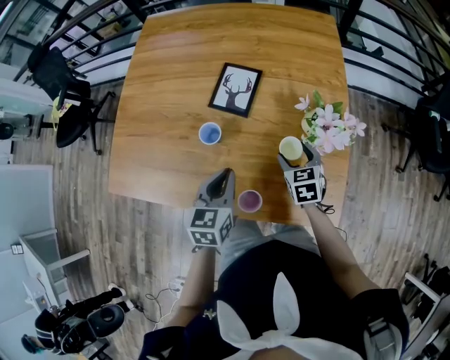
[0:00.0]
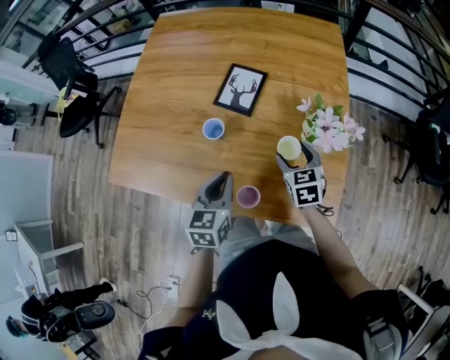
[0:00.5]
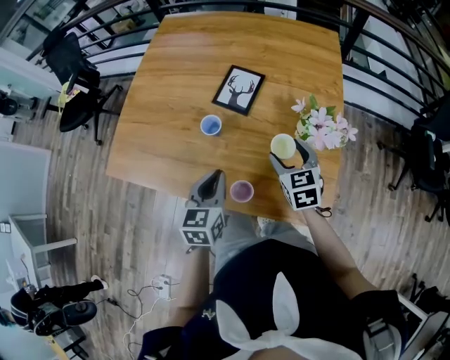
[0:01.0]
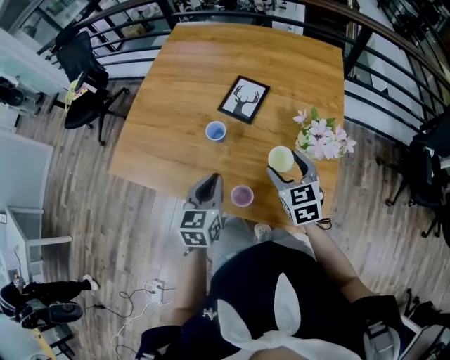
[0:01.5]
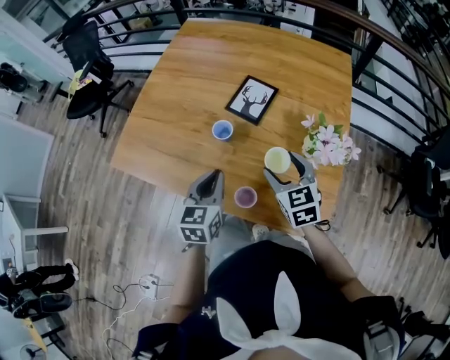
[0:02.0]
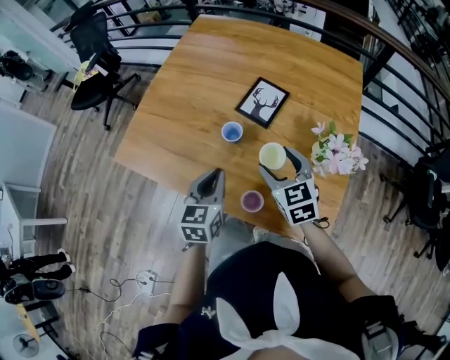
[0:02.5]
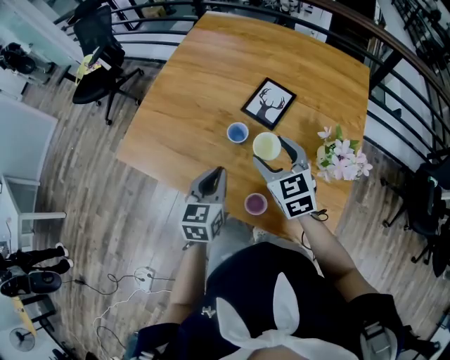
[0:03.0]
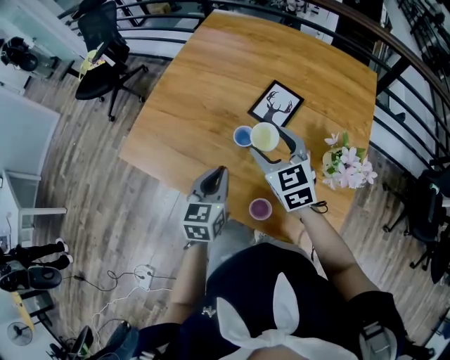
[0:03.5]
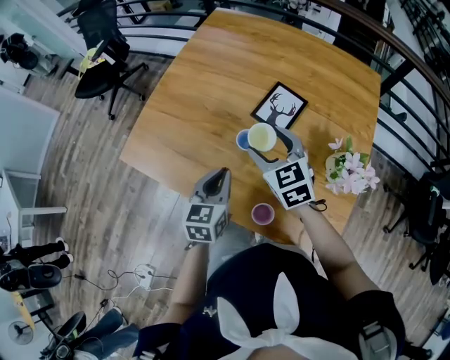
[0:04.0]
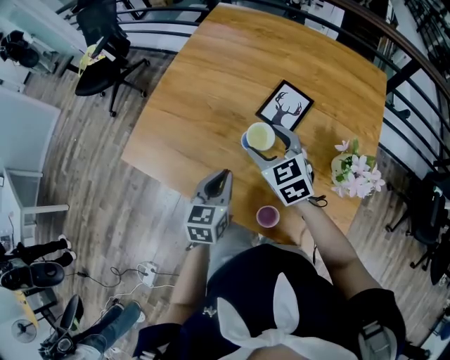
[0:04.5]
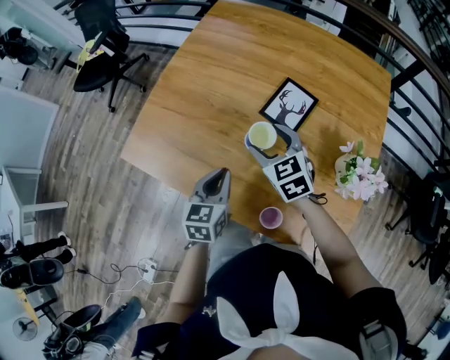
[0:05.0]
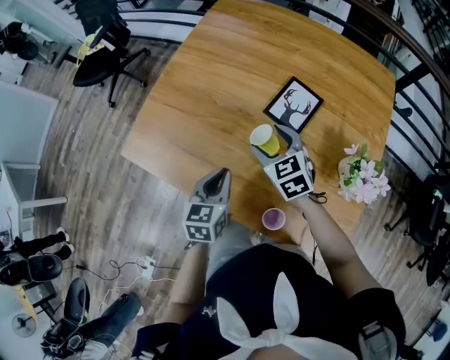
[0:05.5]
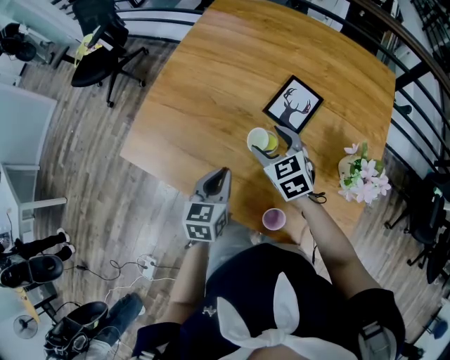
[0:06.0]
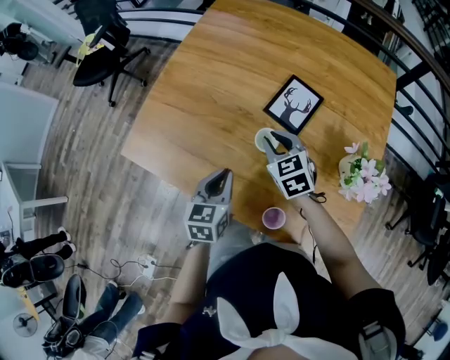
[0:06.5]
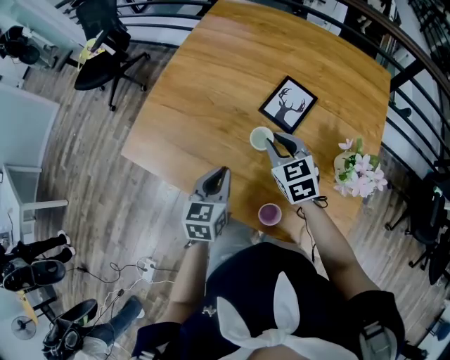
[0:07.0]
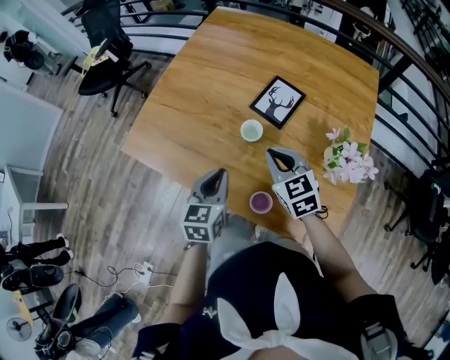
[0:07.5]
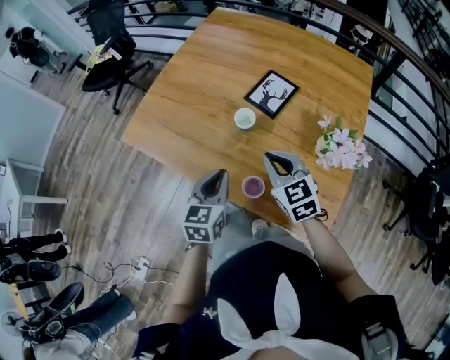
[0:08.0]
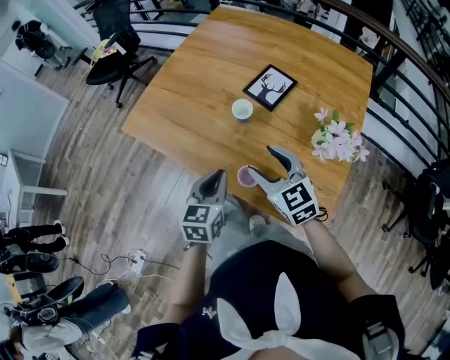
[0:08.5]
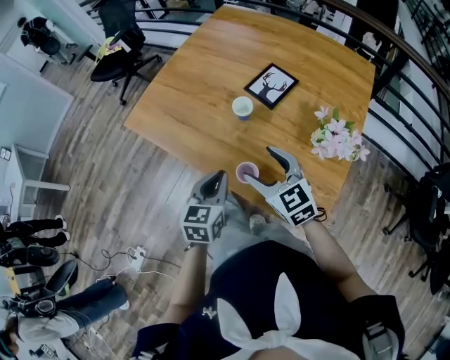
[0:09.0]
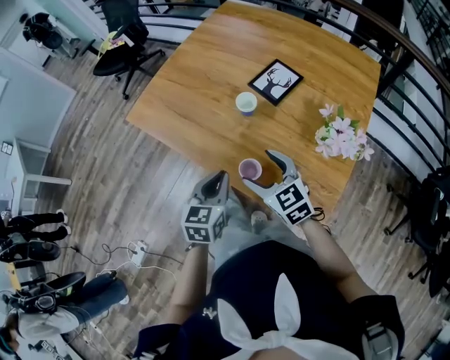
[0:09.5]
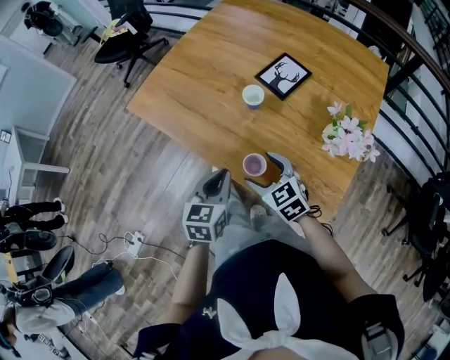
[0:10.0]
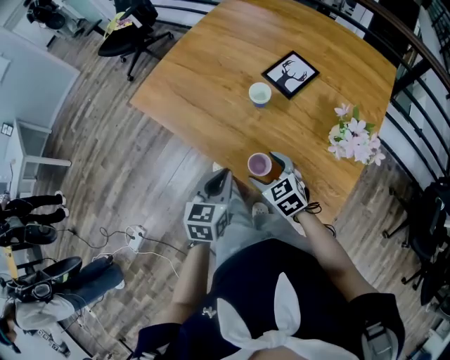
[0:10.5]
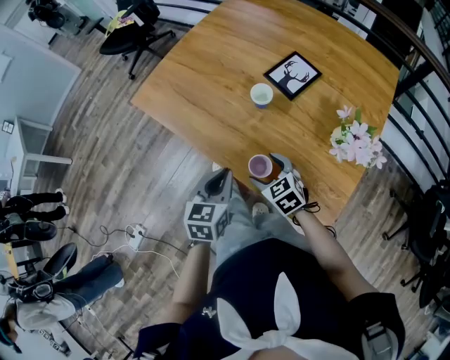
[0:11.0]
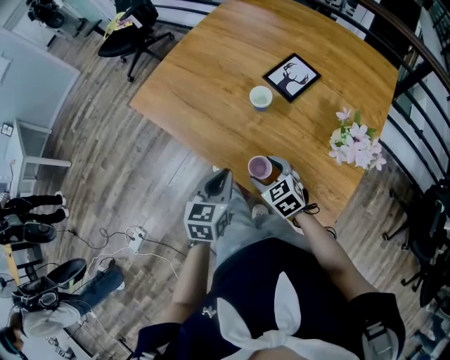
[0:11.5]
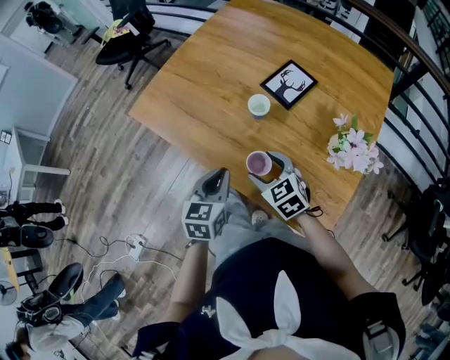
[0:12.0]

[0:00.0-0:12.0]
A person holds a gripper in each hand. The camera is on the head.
0:00.0 to 0:02.0: The left gripper heads backward, covering approximately 5 cm; the right gripper is displaced upward, to the left and backward by approximately 15 cm, and turns by approximately 20 degrees.
0:02.0 to 0:04.0: The right gripper goes approximately 20 cm forward and to the left, while the left gripper is displaced forward and to the left by some 10 cm.
0:04.0 to 0:06.0: The right gripper goes approximately 10 cm downward. The left gripper shifts by roughly 5 cm.
0:06.0 to 0:08.0: The right gripper is displaced backward by roughly 20 cm, and closes up, while the left gripper goes about 15 cm backward and to the right.
0:08.0 to 0:10.0: The right gripper moves downward, backward and to the left, some 15 cm, and opens its fingers. Meanwhile the left gripper moves backward, approximately 5 cm.
0:10.0 to 0:12.0: The right gripper moves forward, roughly 5 cm.

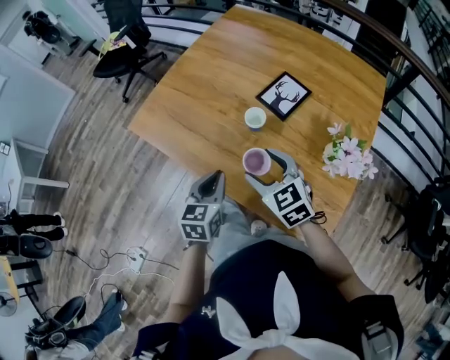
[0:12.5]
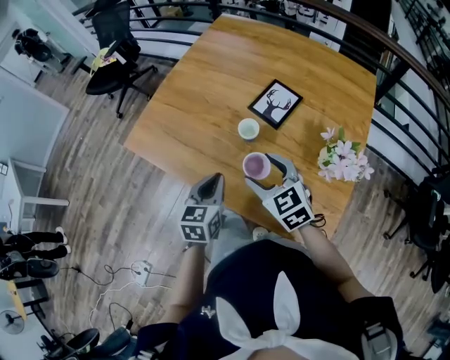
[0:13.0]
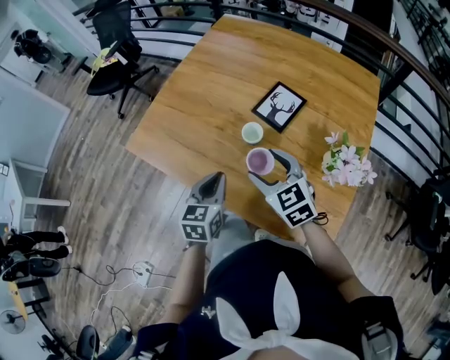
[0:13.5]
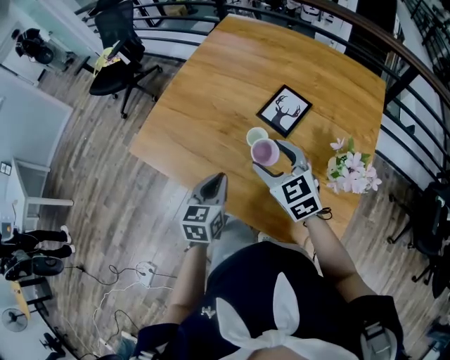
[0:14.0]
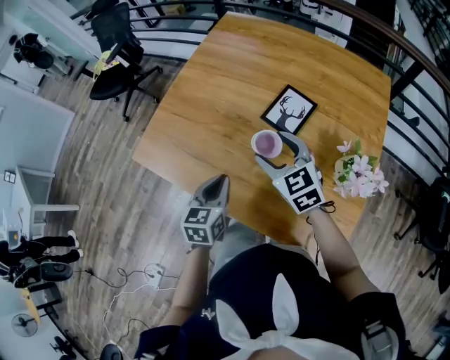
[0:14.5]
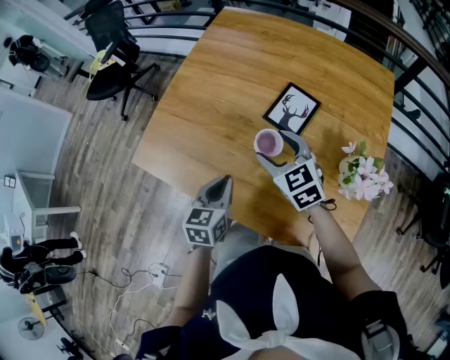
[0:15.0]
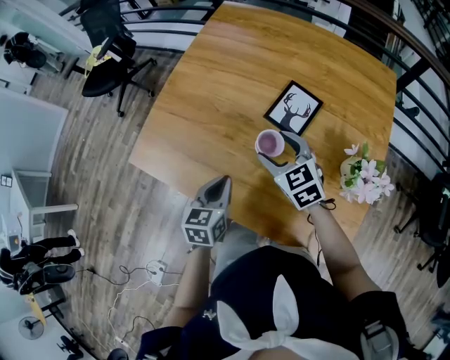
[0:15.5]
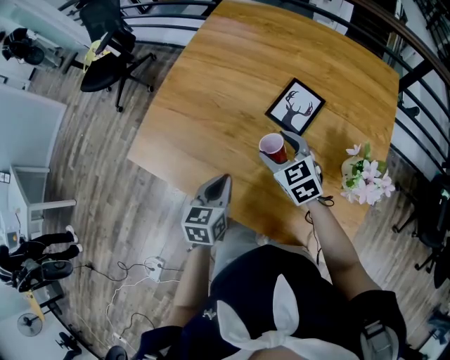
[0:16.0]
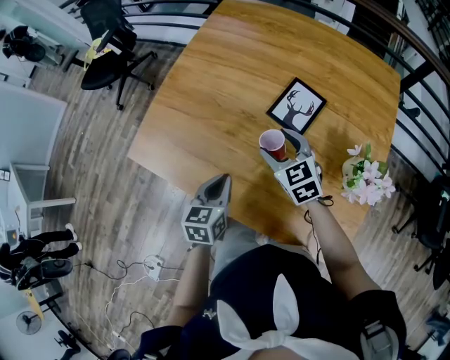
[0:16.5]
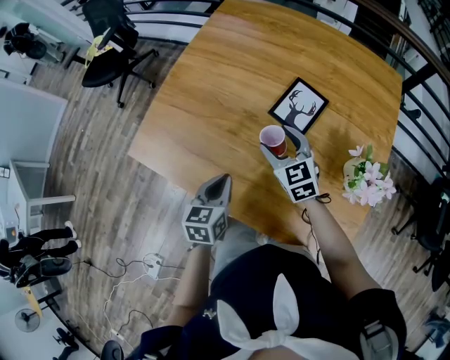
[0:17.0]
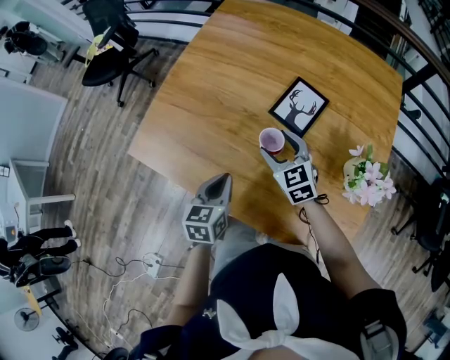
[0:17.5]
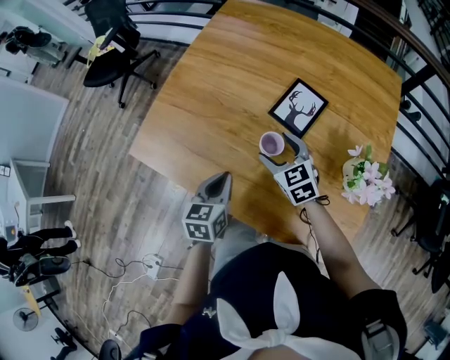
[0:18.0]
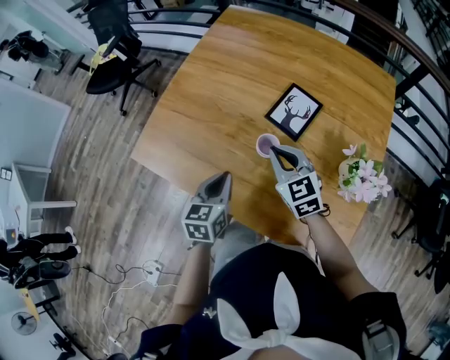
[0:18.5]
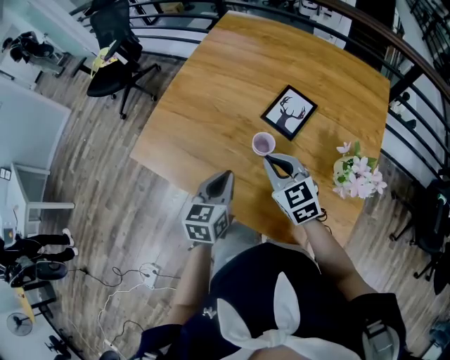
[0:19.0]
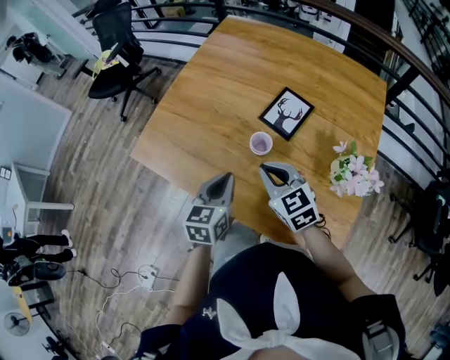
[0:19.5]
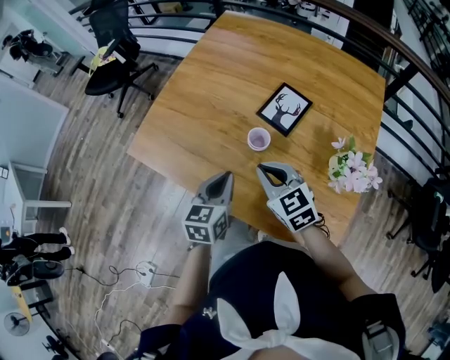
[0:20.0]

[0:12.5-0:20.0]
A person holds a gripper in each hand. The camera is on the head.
0:12.5 to 0:14.5: The two grippers go roughly 15 cm forward.
0:14.5 to 0:16.5: The right gripper travels downward and forward by about 10 cm, while the left gripper ends up approximately 5 cm from where it was.
0:16.5 to 0:18.0: The grippers stay close to where they were, moving slightly.
0:18.0 to 0:20.0: The left gripper changes place by roughly 10 cm. The right gripper moves backward and upward, some 15 cm, and closes its fingers.

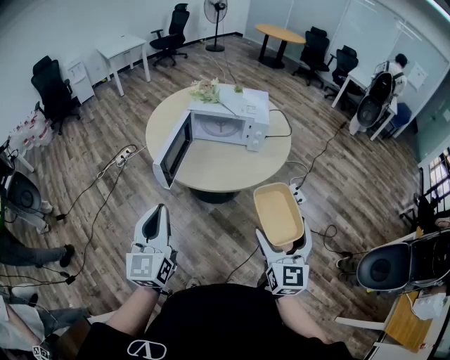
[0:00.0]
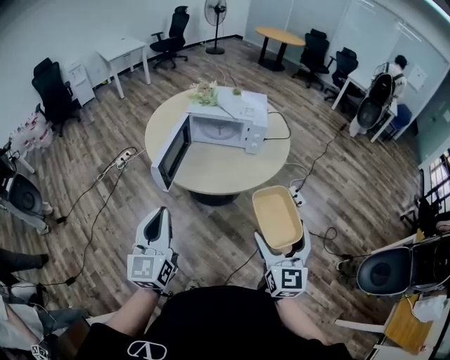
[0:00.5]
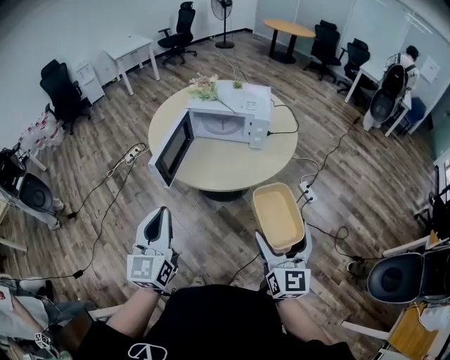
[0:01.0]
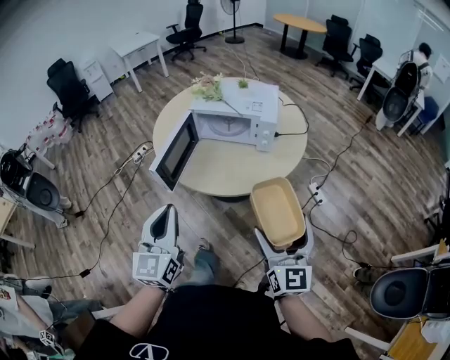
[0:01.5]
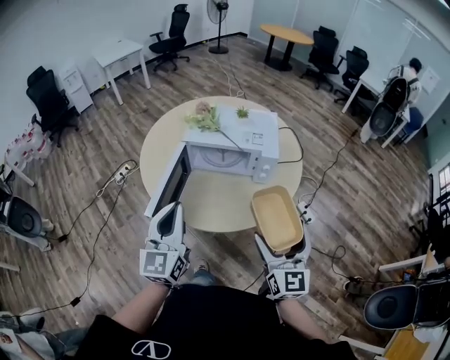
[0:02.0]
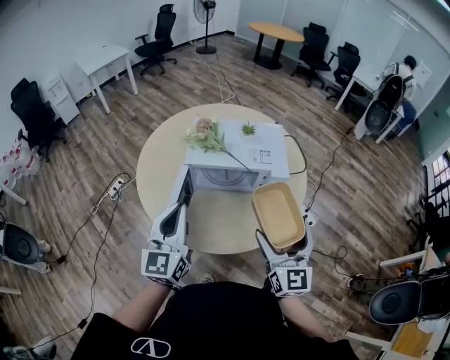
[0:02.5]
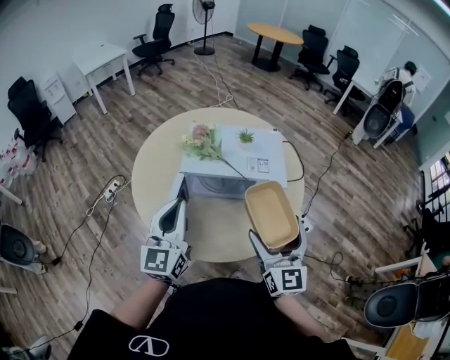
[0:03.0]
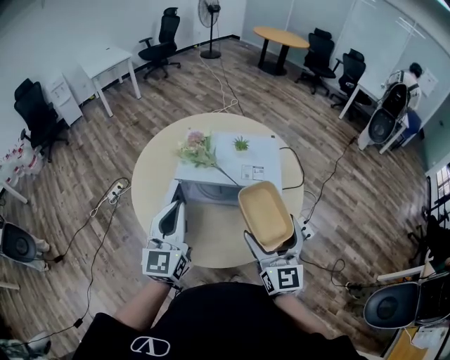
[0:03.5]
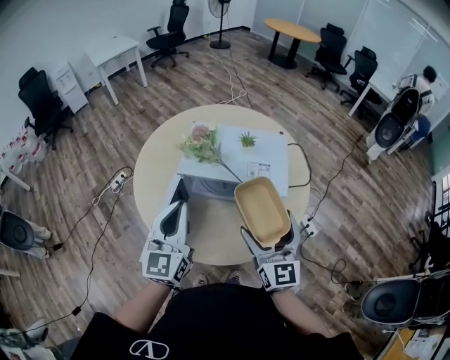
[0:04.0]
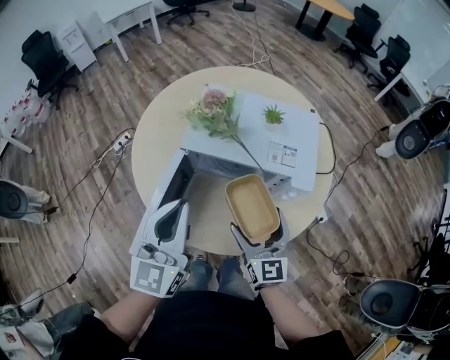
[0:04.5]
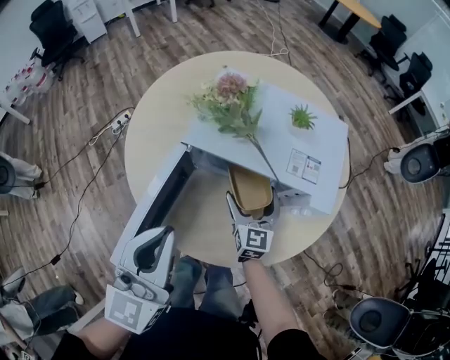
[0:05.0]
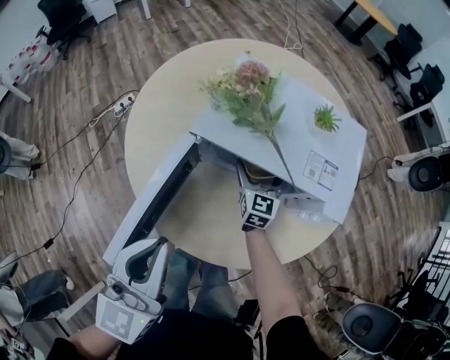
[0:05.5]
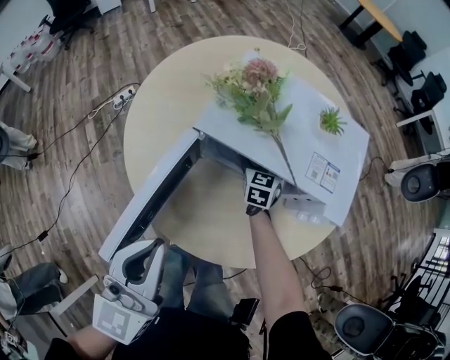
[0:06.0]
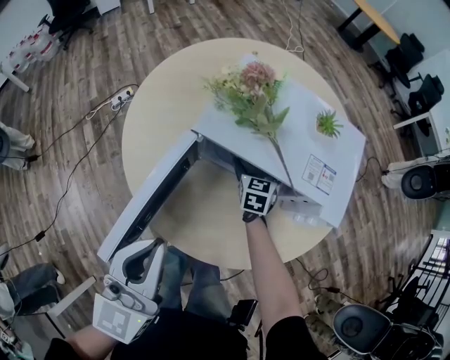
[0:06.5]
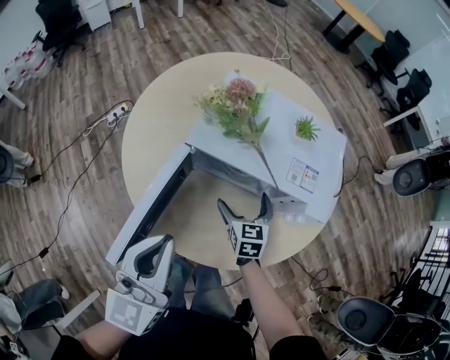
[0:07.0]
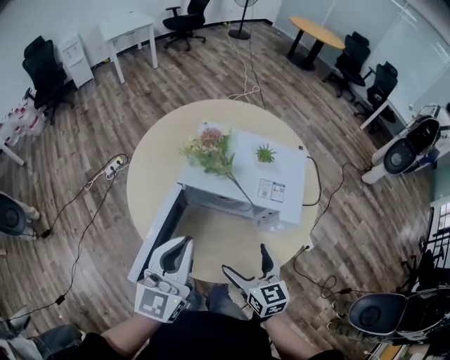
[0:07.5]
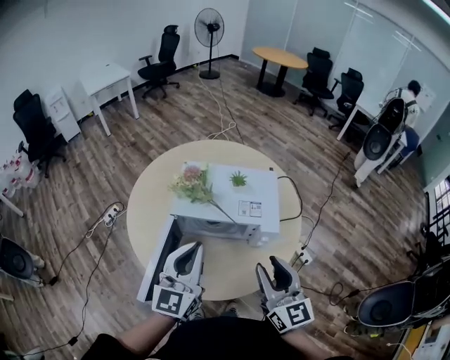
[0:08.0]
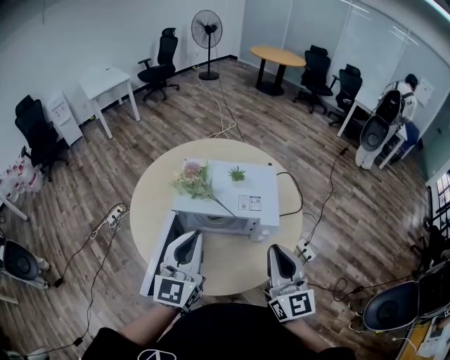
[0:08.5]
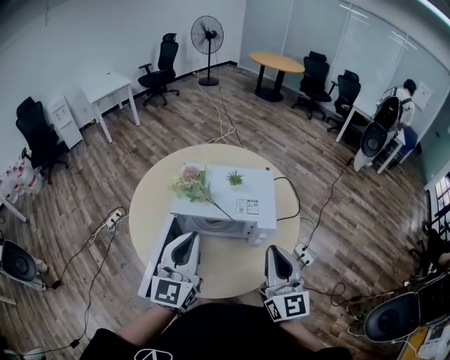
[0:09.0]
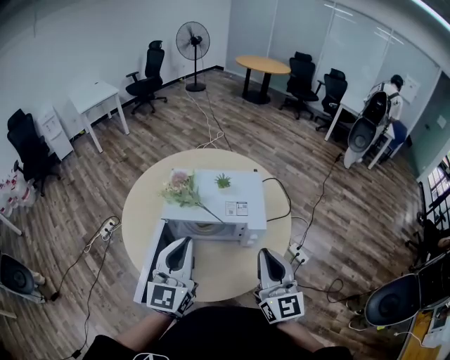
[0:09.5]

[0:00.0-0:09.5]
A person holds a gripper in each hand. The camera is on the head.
0:00.0 to 0:02.0: Both grippers travel together forward, roughly 25 cm.
0:02.0 to 0:04.0: Both grippers move forward, roughly 20 cm.
0:04.0 to 0:05.5: The left gripper heads downward, covering some 15 cm. The right gripper goes roughly 40 cm downward and forward.
0:05.5 to 0:07.5: The right gripper travels backward and upward by some 30 cm, and swivels about 20 degrees; the left gripper is displaced upward by about 10 cm.
0:07.5 to 0:09.5: The left gripper moves upward and to the right, roughly 10 cm, while the right gripper shifts approximately 25 cm upward and to the right, points its fingers some 30 degrees further upward, and closes.
